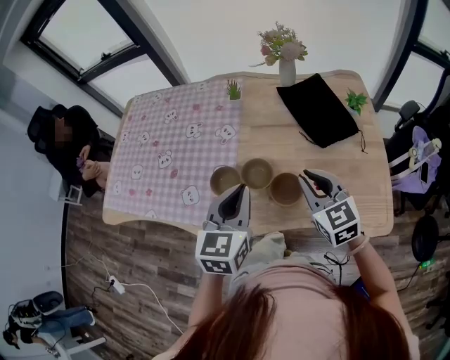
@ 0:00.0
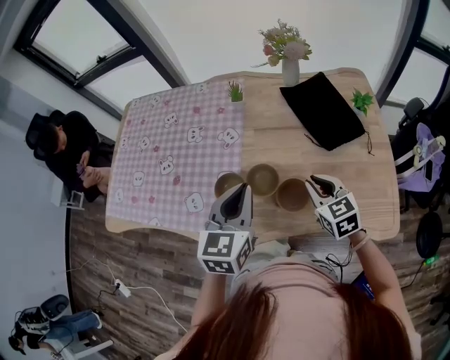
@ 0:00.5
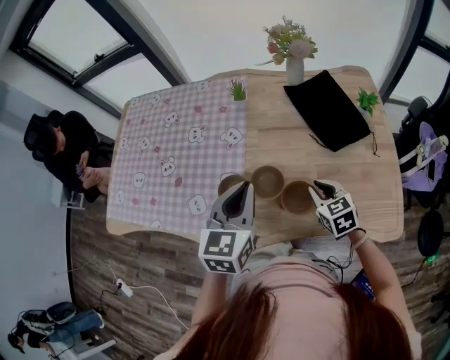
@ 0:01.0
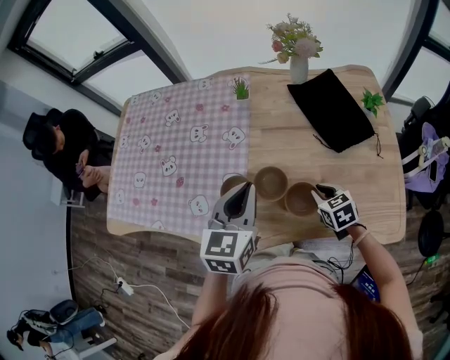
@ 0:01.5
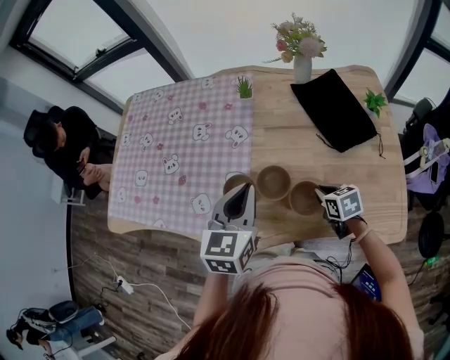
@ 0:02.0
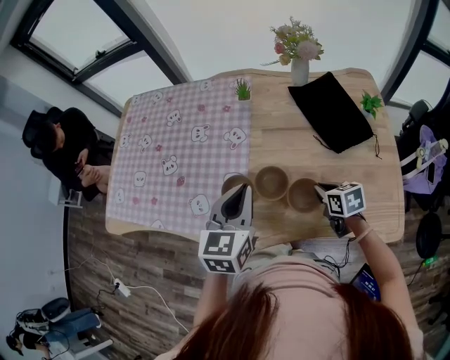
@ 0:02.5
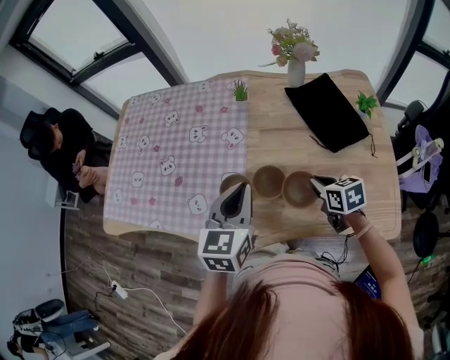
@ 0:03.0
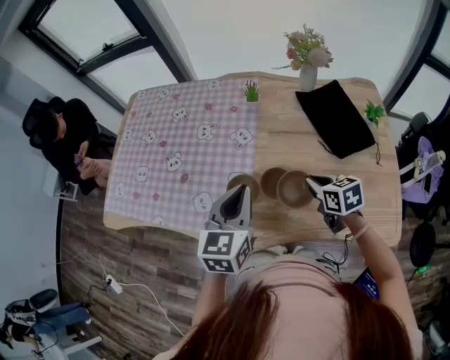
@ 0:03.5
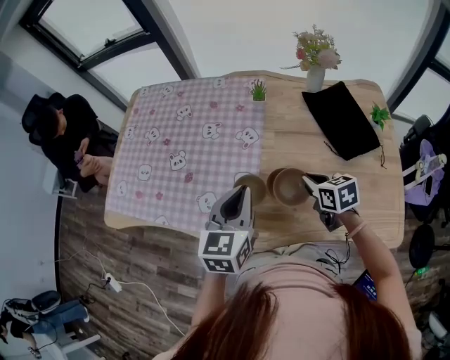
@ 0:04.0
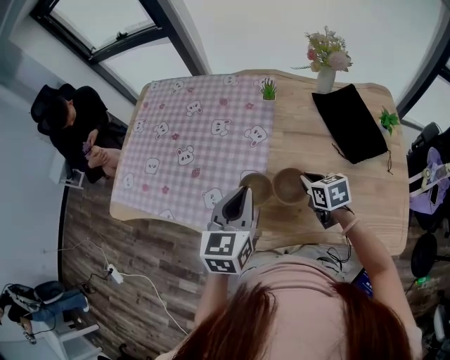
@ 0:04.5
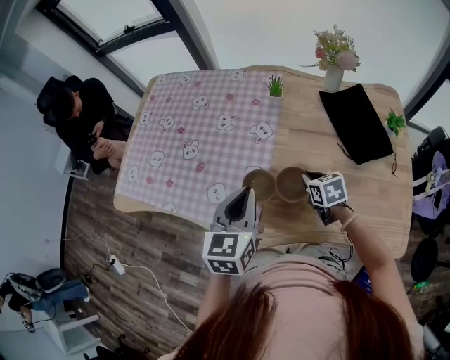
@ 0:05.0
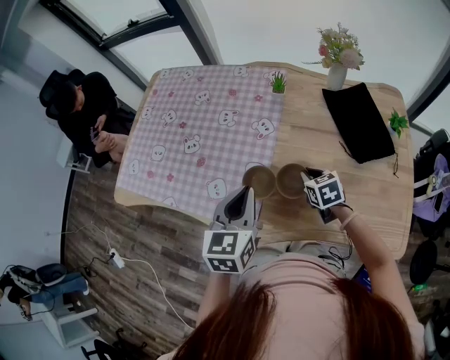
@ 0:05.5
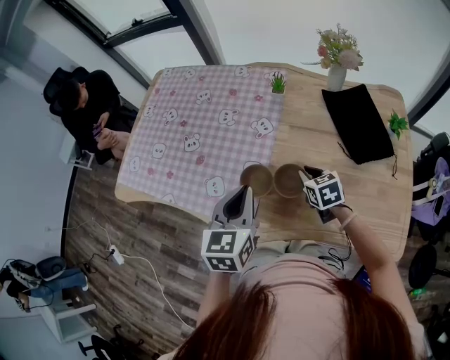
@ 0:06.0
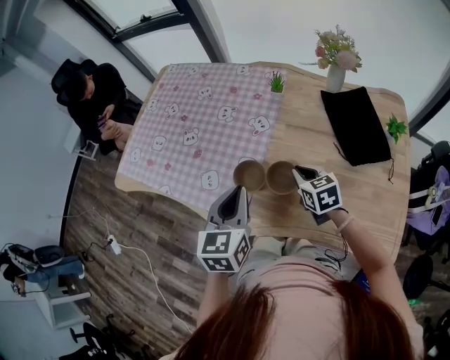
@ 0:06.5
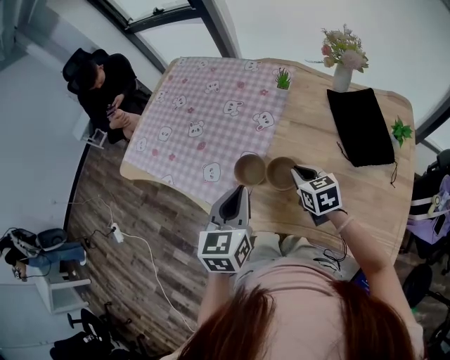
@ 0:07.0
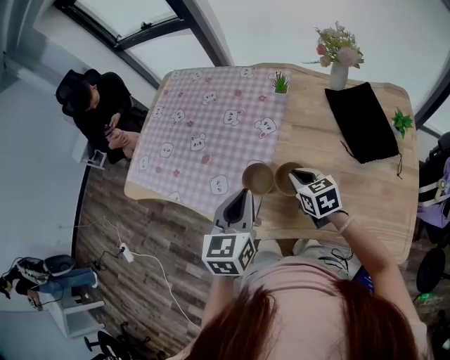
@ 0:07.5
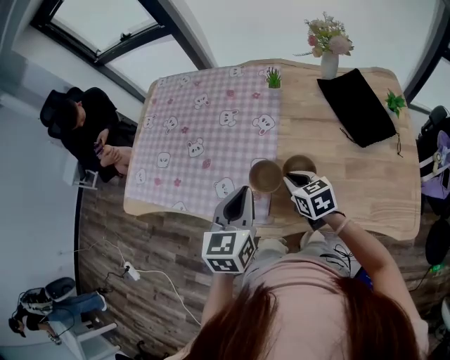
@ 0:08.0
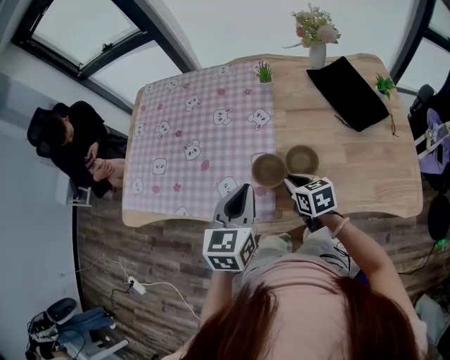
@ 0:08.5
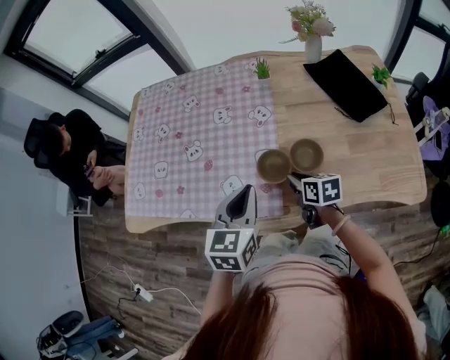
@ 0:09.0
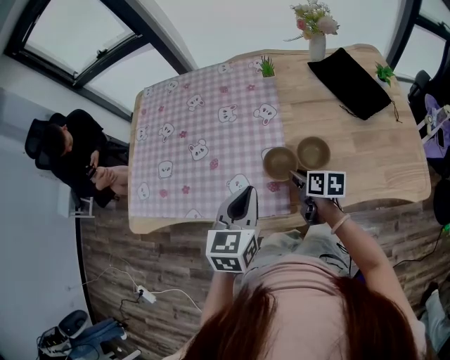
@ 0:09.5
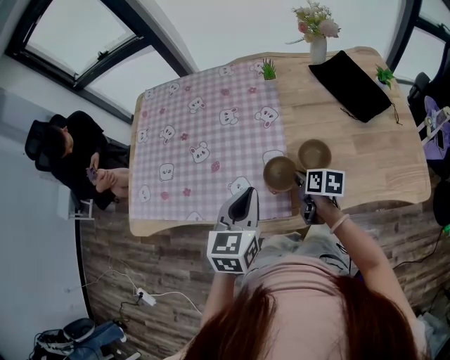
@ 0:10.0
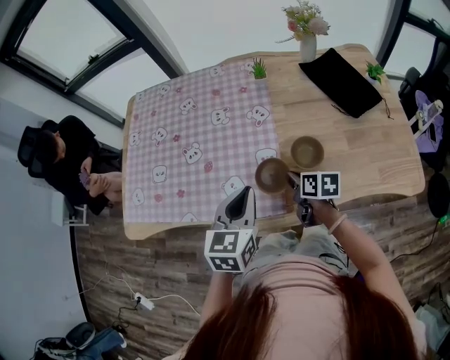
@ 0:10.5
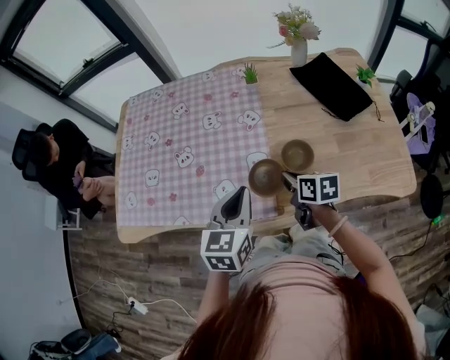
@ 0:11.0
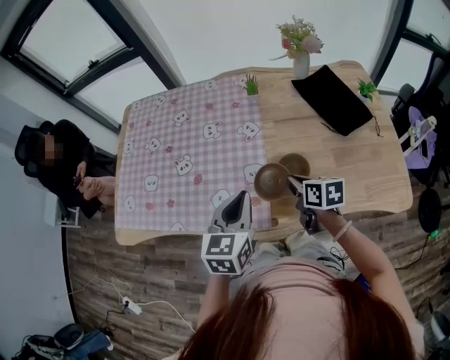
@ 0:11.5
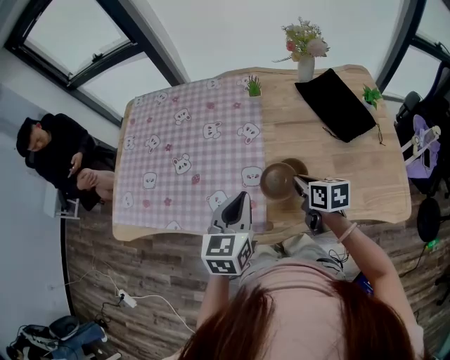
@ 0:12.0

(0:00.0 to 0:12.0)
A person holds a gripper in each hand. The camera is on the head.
0:00.0 - 0:02.0: The right gripper goes approximately 20 cm downward, and swivels approximately 40 degrees. Meanwhile the left gripper travels forward by some 5 cm.
0:02.0 - 0:04.0: The right gripper is displaced upward, to the left and forward by approximately 10 cm. The left gripper travels to the left by roughly 5 cm.
0:06.0 - 0:08.0: The right gripper travels to the left by approximately 10 cm.
0:08.0 - 0:10.0: The left gripper shifts roughly 5 cm to the left. Meanwhile the right gripper goes roughly 5 cm downward, and twists about 40 degrees clockwise, seen from behind.
0:10.0 - 0:12.0: The right gripper heads upward and to the right, covering some 10 cm; the left gripper travels to the right by about 5 cm.

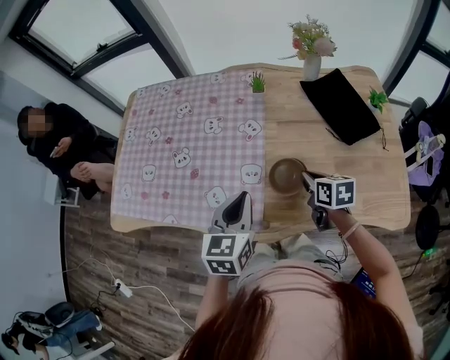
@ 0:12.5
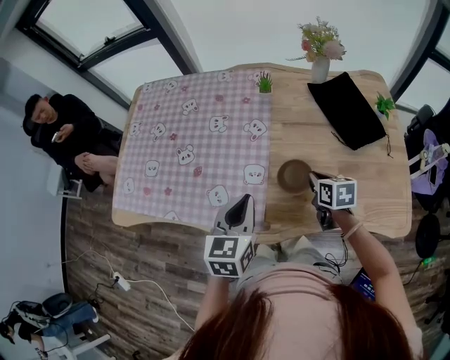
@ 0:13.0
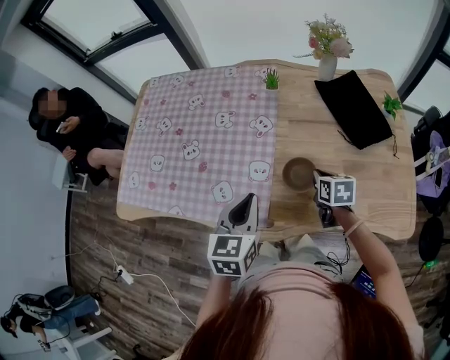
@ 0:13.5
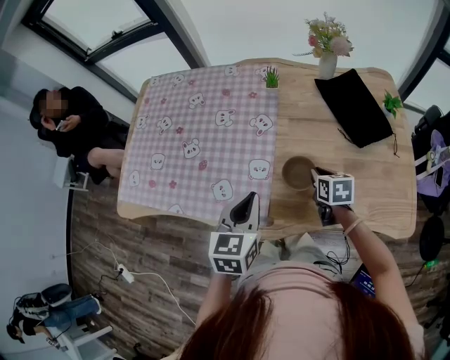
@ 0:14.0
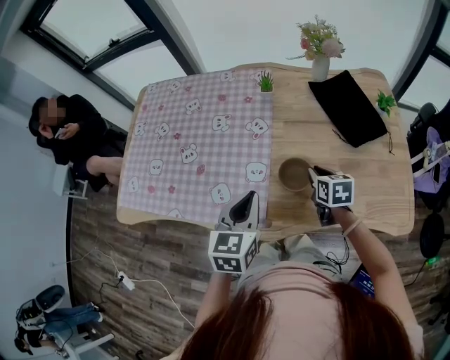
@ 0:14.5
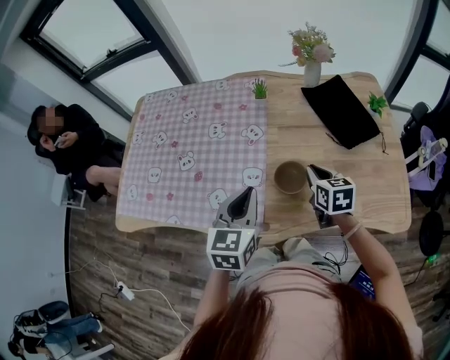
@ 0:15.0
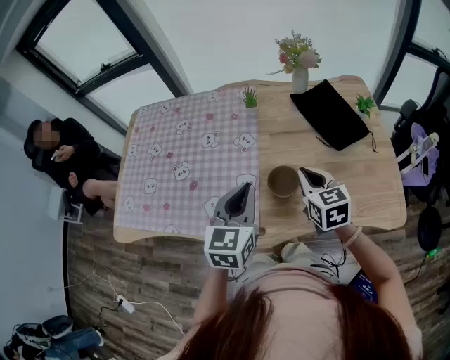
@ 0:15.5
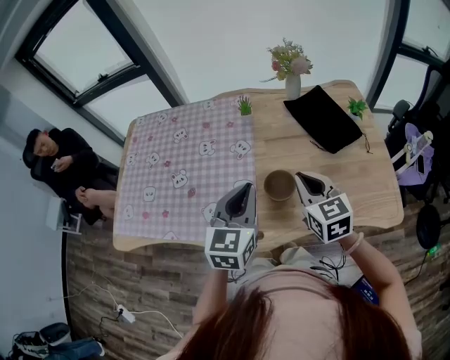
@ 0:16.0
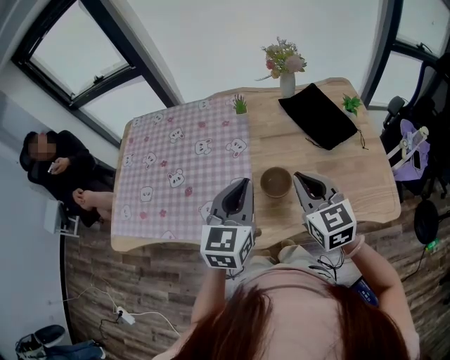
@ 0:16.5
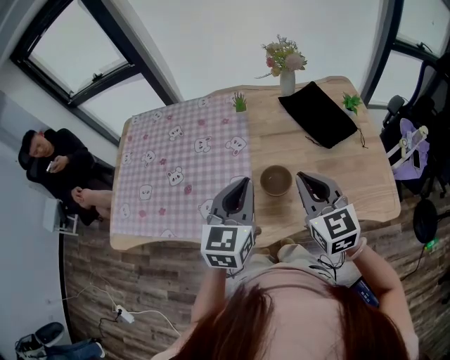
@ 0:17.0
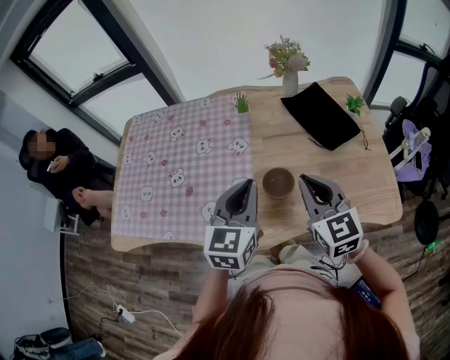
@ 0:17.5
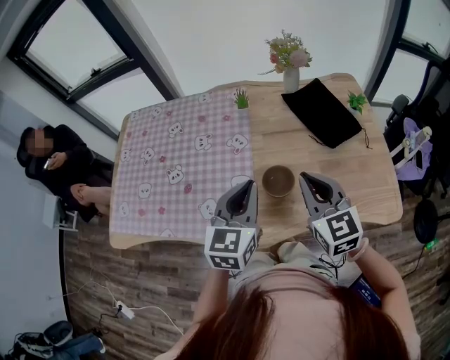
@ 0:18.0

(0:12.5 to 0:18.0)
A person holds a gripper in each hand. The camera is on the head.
0:12.5 - 0:14.5: The grippers make only small movements.
0:14.5 - 0:16.0: The right gripper is displaced upward by about 15 cm, and swivels some 30 degrees. Meanwhile the left gripper heads upward, covering some 5 cm.
0:16.0 - 0:18.0: The grippers move only a little.

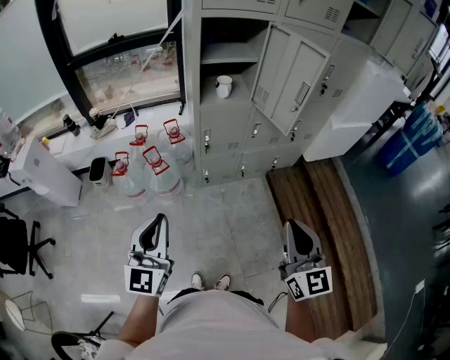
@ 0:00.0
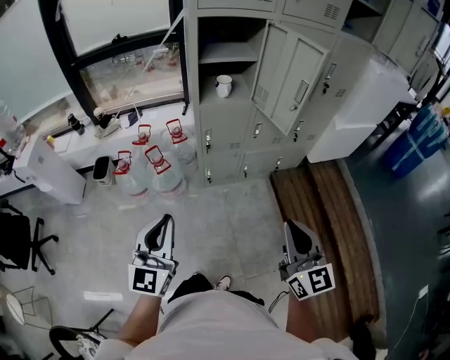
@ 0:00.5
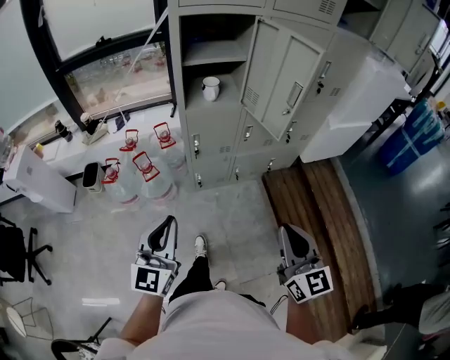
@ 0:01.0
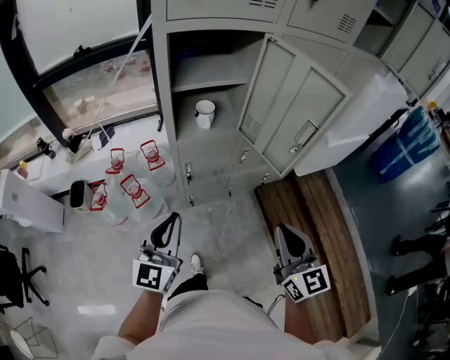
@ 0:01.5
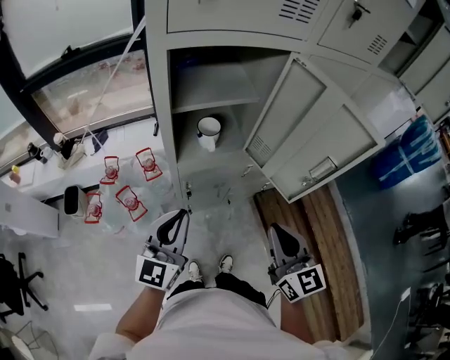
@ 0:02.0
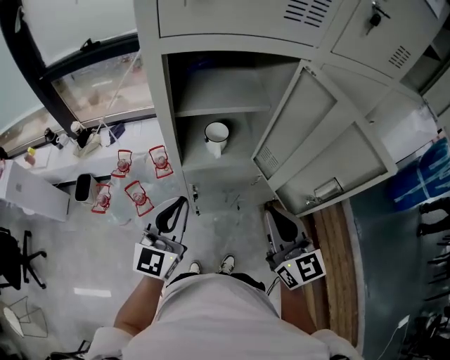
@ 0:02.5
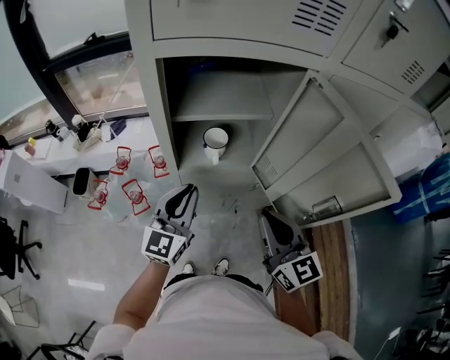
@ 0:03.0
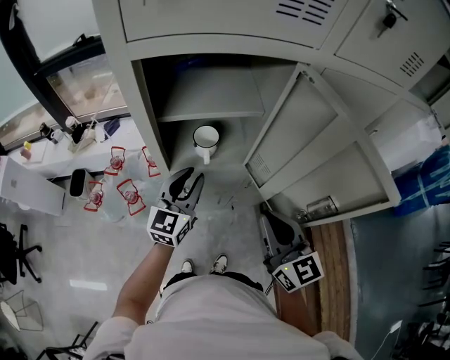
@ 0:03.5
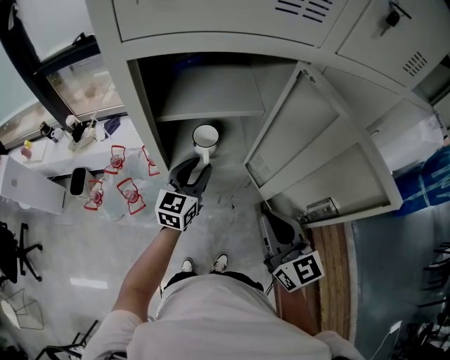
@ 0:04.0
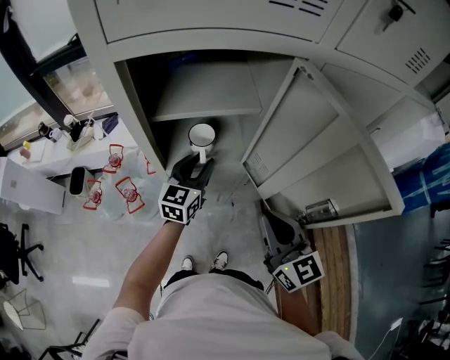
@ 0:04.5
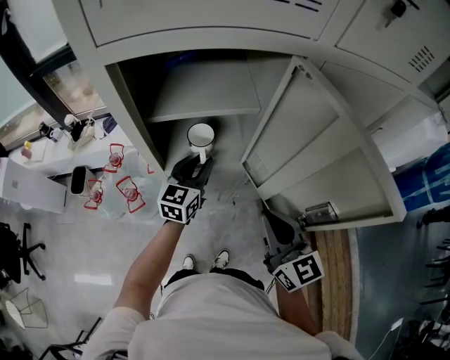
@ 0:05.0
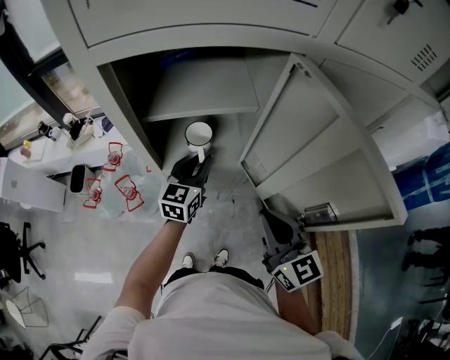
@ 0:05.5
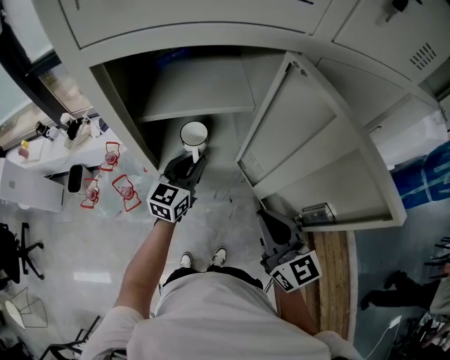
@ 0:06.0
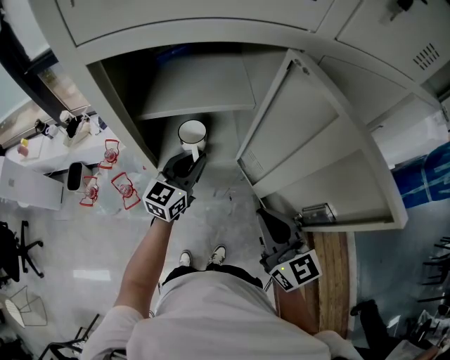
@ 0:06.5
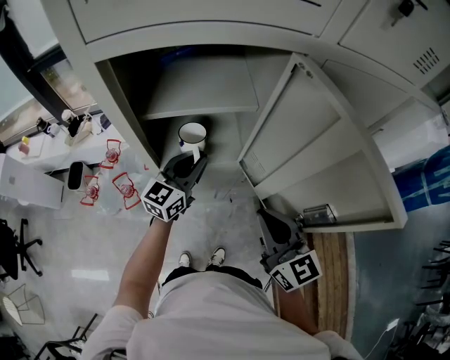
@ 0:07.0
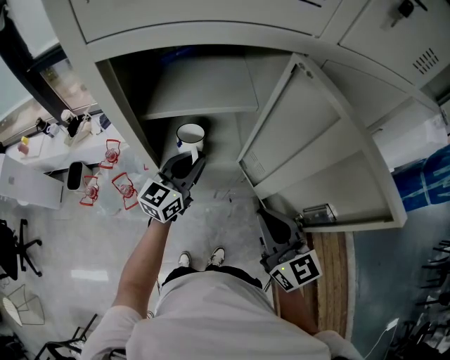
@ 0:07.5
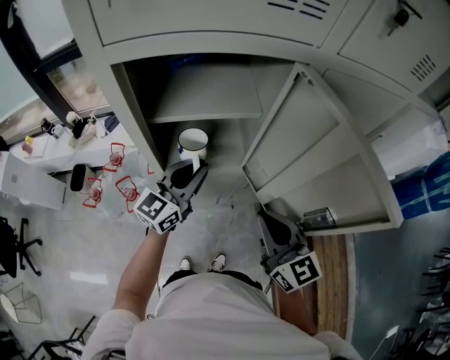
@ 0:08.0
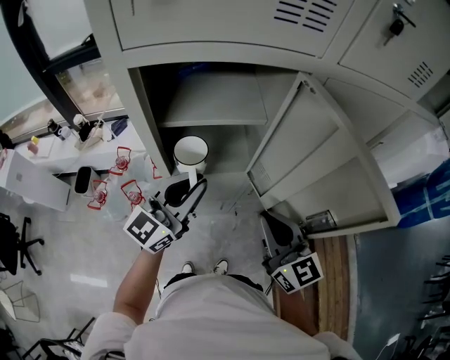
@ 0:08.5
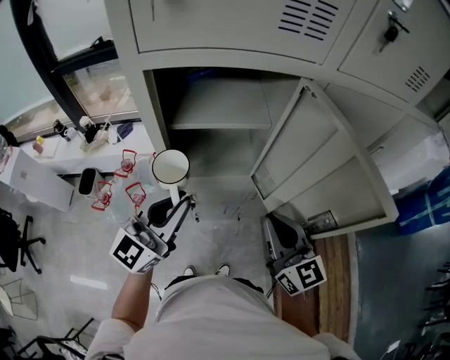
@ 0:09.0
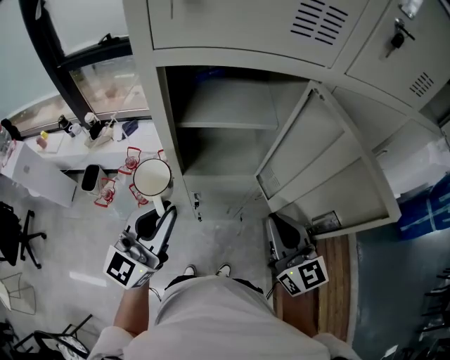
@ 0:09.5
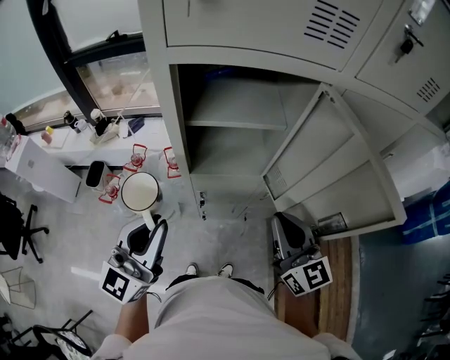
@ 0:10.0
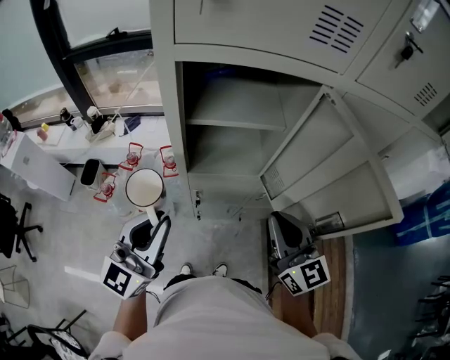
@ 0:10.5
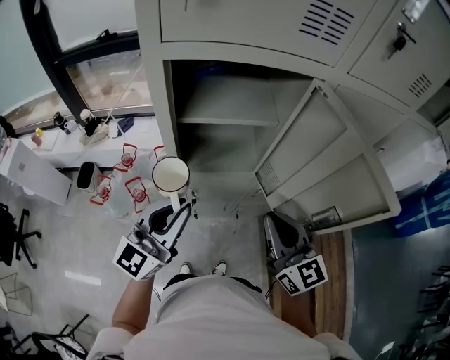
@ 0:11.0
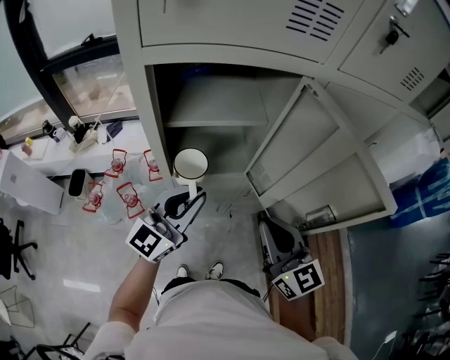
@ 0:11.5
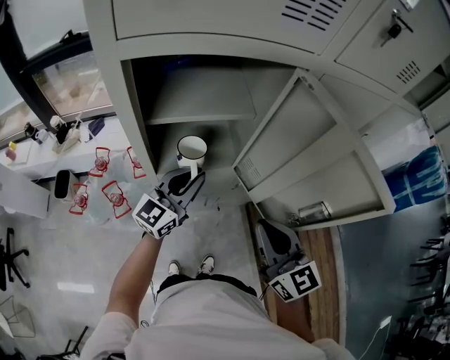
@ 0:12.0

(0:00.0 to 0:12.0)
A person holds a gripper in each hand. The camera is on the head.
0:00.0 - 0:02.0: Both grippers travel together forward, about 30 cm.
0:02.0 - 0:04.0: The right gripper heads forward, covering some 10 cm. The left gripper moves forward and to the right, roughly 20 cm, and opens.
0:04.0 - 0:06.0: The grippers stay close to where they were, moving slightly.
0:06.0 - 0:08.0: The left gripper travels upward by approximately 5 cm.
0:08.0 - 0:10.0: The left gripper goes roughly 25 cm backward, to the left and upward, and changes its angle by about 20 degrees.
0:10.0 - 0:12.0: The left gripper moves forward, to the right and downward, roughly 25 cm, and changes its angle by about 20 degrees.
